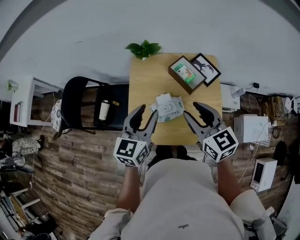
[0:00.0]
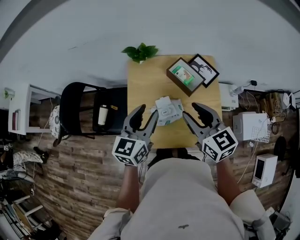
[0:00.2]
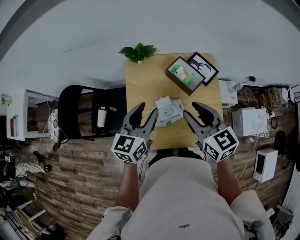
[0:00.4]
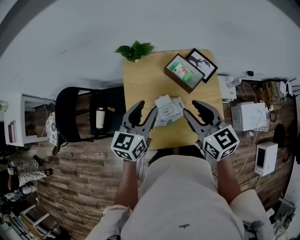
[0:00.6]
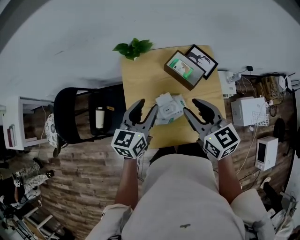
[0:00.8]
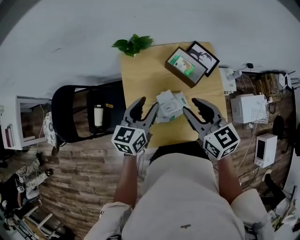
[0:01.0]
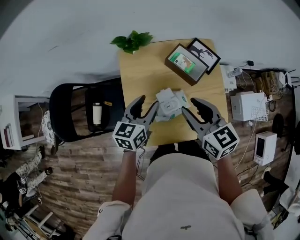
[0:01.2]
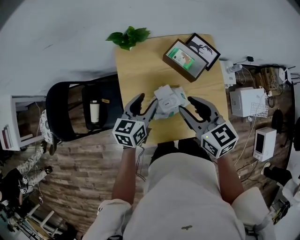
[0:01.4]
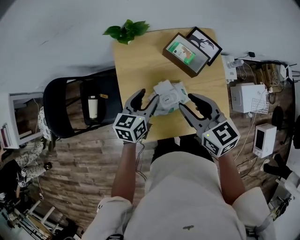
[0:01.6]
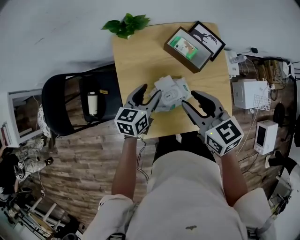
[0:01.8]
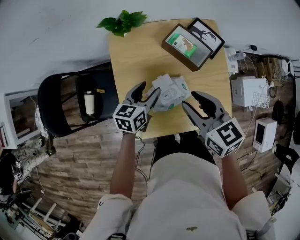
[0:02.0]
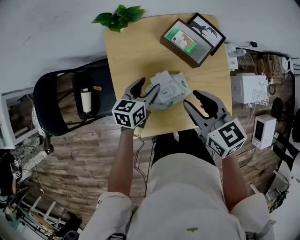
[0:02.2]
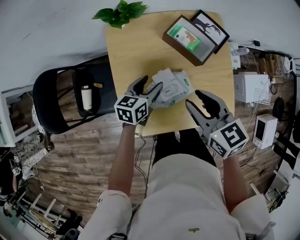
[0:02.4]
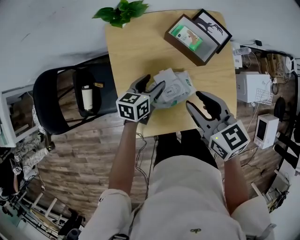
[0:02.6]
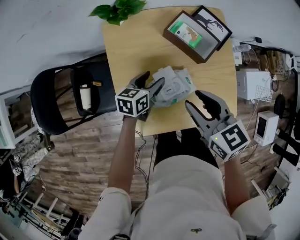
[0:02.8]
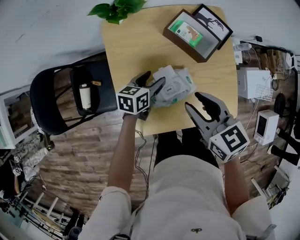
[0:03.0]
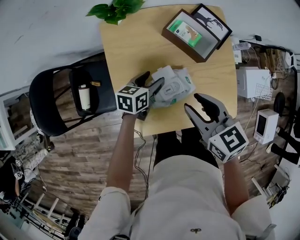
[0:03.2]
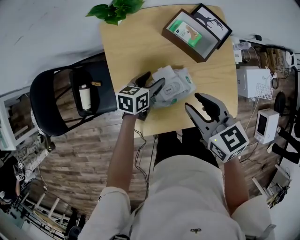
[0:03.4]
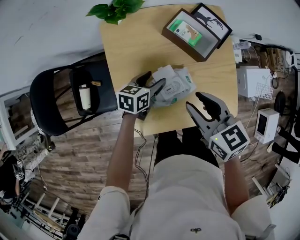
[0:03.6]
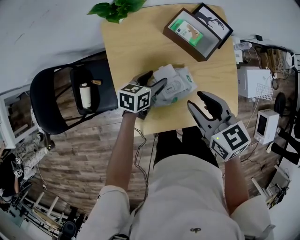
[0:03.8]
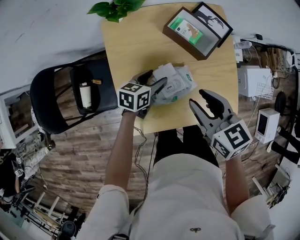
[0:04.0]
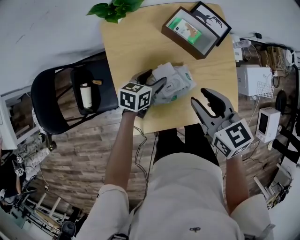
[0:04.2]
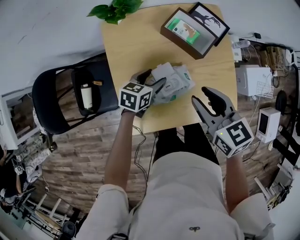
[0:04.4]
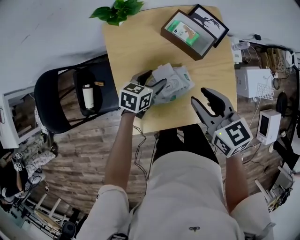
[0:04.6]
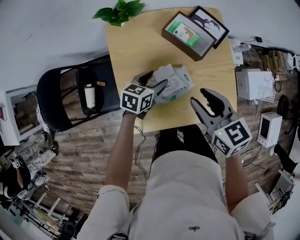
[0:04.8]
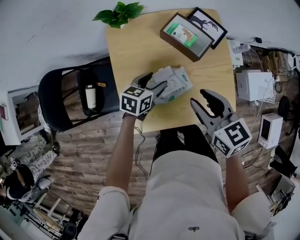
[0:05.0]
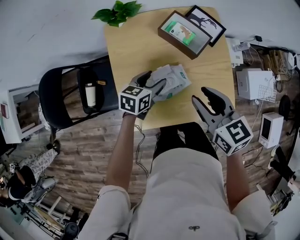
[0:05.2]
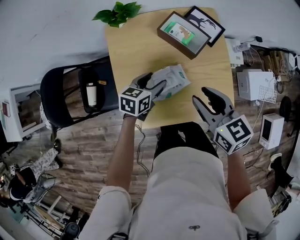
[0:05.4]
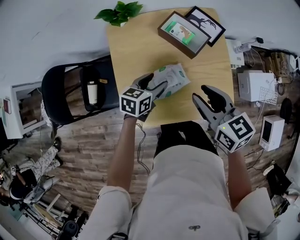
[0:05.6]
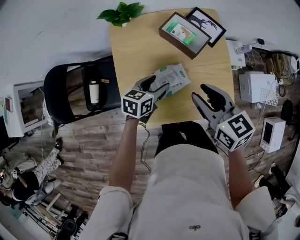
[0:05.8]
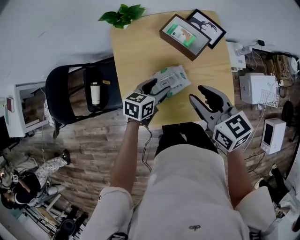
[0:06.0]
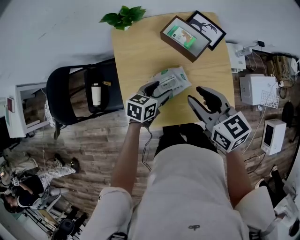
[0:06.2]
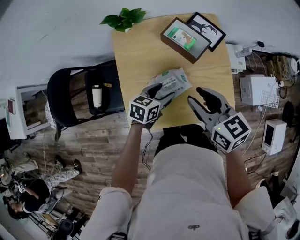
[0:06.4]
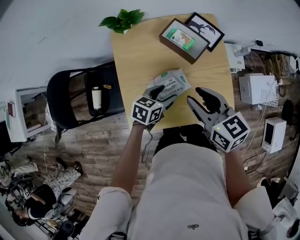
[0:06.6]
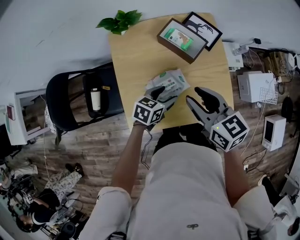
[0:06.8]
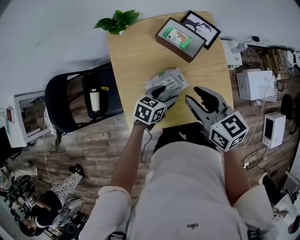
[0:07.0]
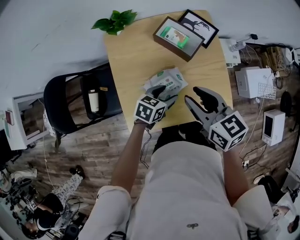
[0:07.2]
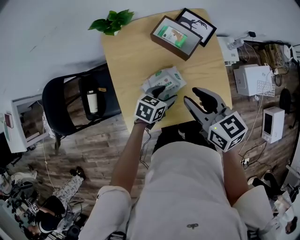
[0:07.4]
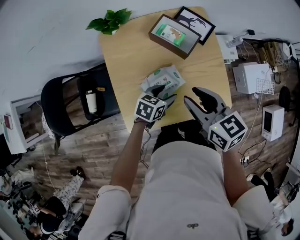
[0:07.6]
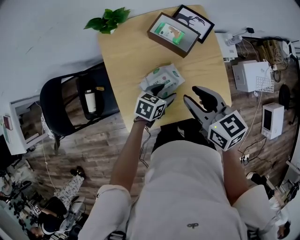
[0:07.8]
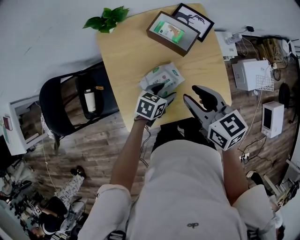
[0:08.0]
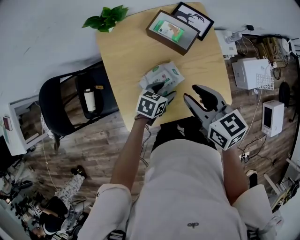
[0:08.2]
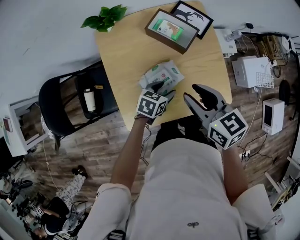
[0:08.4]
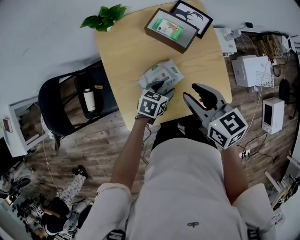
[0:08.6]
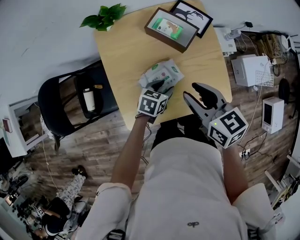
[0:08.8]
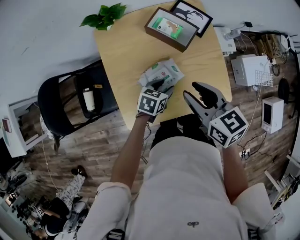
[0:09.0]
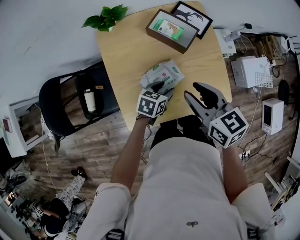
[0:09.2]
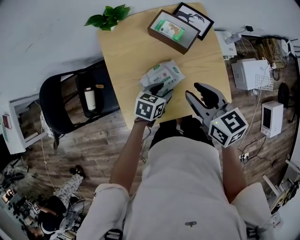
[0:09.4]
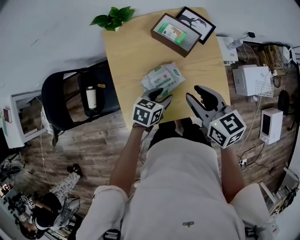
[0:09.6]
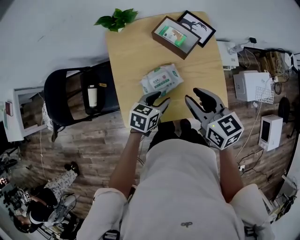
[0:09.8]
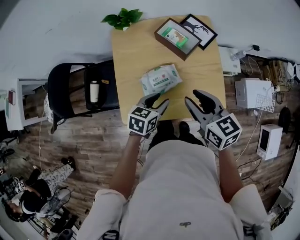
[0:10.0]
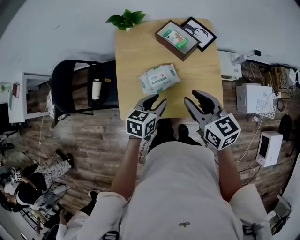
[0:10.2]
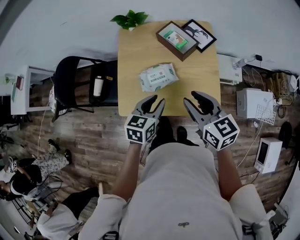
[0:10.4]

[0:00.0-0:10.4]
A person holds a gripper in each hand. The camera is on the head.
0:00.0 to 0:01.4: The right gripper is displaced downward and to the left by approximately 10 cm; the left gripper shifts about 15 cm downward and forward, and swivels some 20 degrees.
0:01.4 to 0:03.0: The right gripper is displaced downward by roughly 10 cm, while the left gripper is displaced downward by roughly 15 cm, and turns by roughly 20 degrees.
0:03.0 to 0:04.4: There are only small adjustments of the grippers.
0:04.4 to 0:06.0: The left gripper moves upward and backward, approximately 10 cm, while the right gripper changes place by about 5 cm.
0:06.0 to 0:07.4: The left gripper shifts some 5 cm to the right.
0:07.4 to 0:09.0: The grippers stay close to where they were, moving slightly.
0:09.0 to 0:10.4: The right gripper moves to the right and backward, some 10 cm. Meanwhile the left gripper goes roughly 20 cm upward and backward, and swivels about 30 degrees.

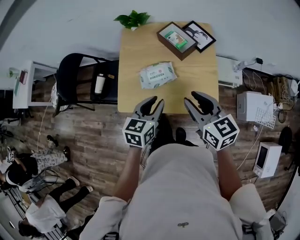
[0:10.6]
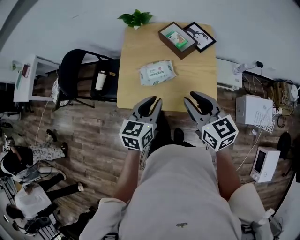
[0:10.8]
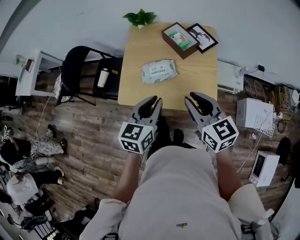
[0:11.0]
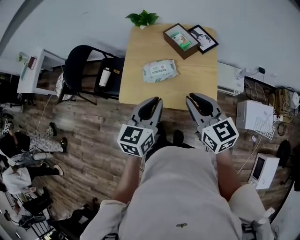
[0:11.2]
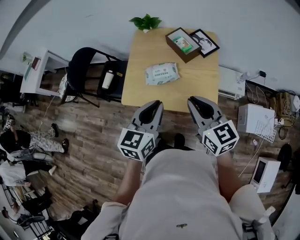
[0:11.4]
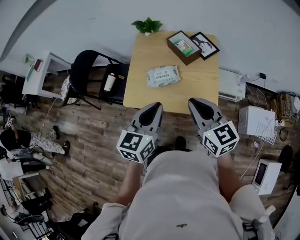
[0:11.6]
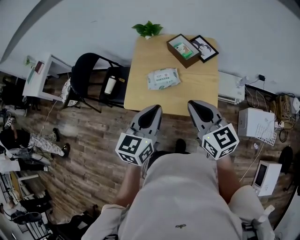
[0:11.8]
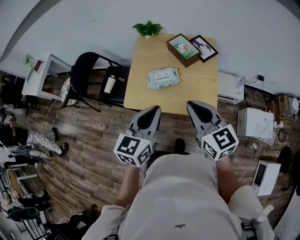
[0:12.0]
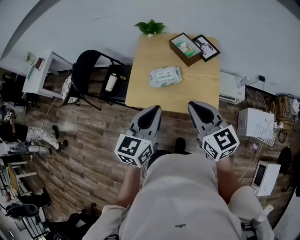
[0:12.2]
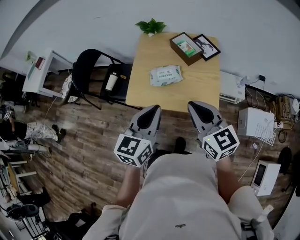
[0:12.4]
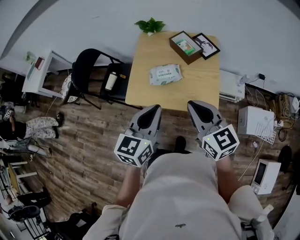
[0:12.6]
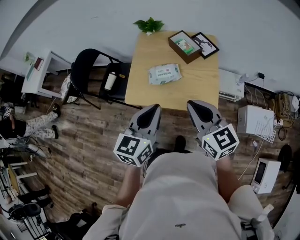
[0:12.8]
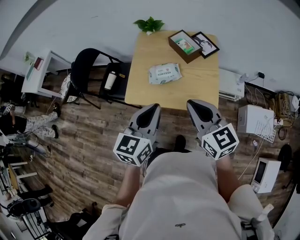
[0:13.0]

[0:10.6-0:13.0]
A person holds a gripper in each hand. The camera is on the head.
0:10.6 to 0:11.8: The right gripper travels backward and upward by roughly 10 cm, and closes its fingers, while the left gripper travels upward and backward by some 15 cm.
0:11.8 to 0:13.0: There are only small adjustments of the grippers.

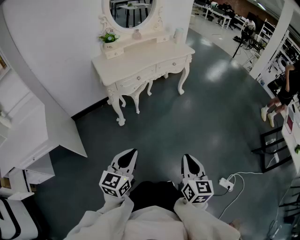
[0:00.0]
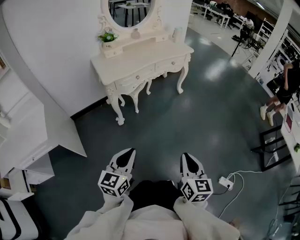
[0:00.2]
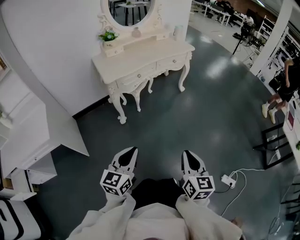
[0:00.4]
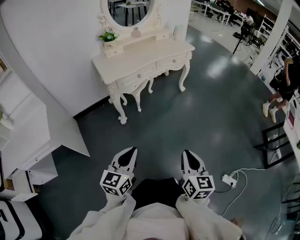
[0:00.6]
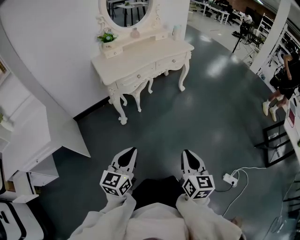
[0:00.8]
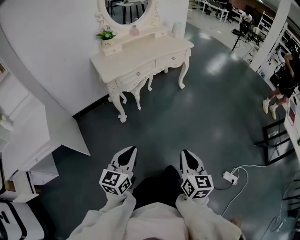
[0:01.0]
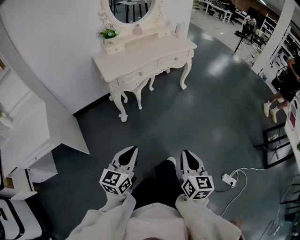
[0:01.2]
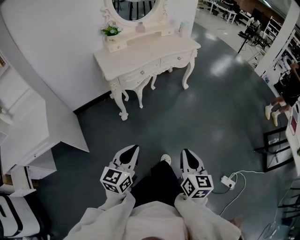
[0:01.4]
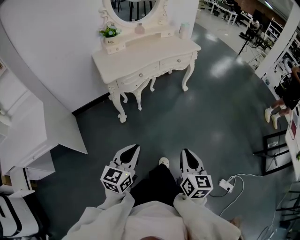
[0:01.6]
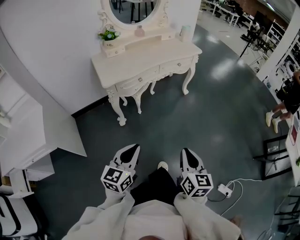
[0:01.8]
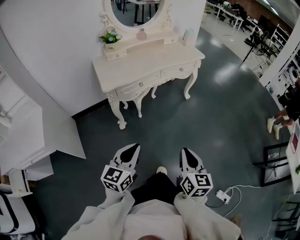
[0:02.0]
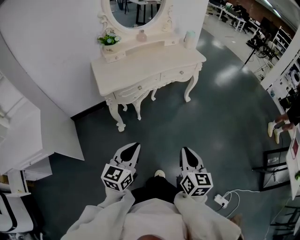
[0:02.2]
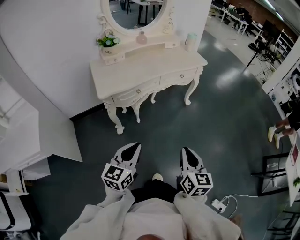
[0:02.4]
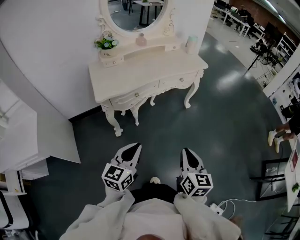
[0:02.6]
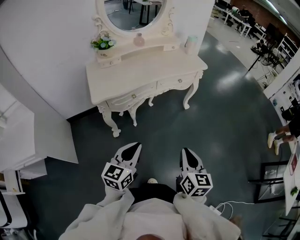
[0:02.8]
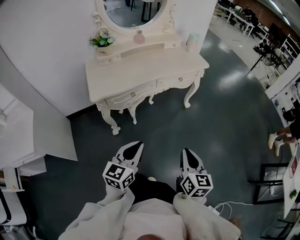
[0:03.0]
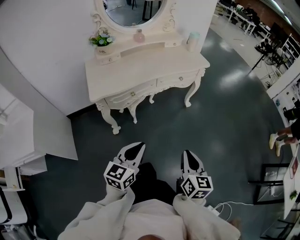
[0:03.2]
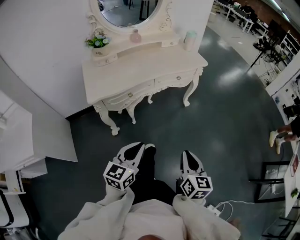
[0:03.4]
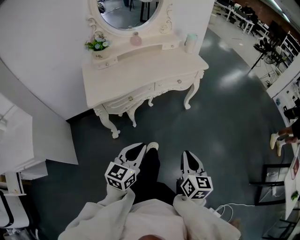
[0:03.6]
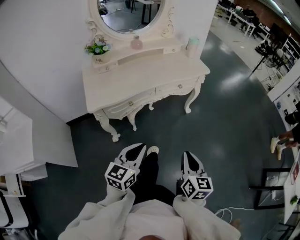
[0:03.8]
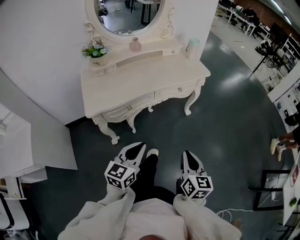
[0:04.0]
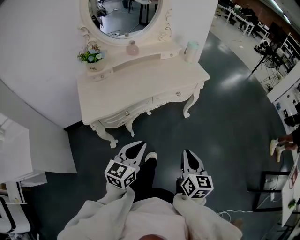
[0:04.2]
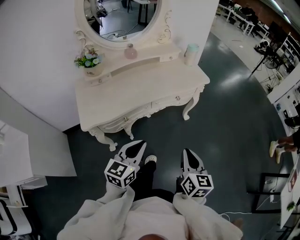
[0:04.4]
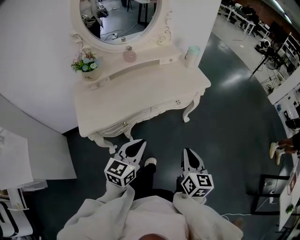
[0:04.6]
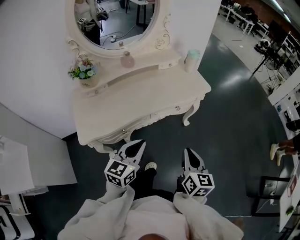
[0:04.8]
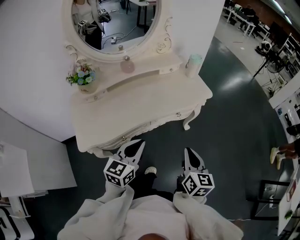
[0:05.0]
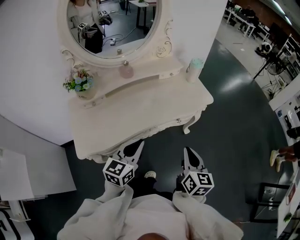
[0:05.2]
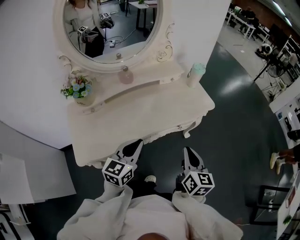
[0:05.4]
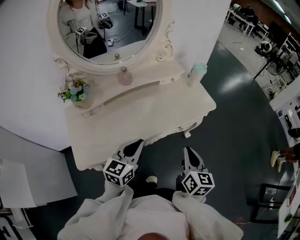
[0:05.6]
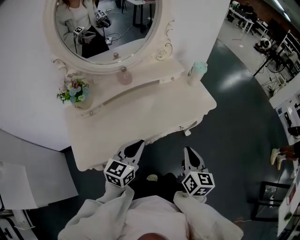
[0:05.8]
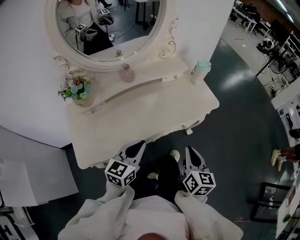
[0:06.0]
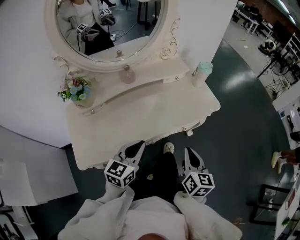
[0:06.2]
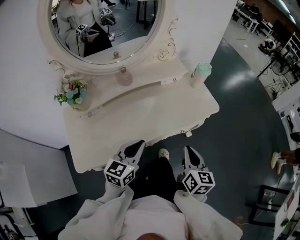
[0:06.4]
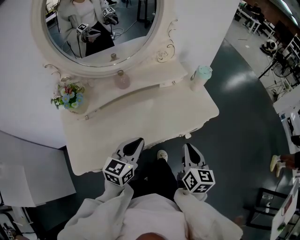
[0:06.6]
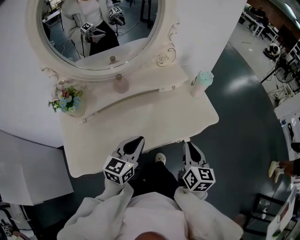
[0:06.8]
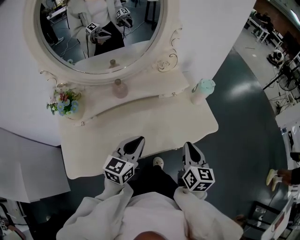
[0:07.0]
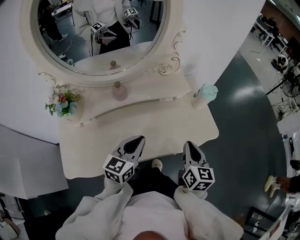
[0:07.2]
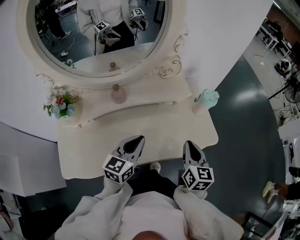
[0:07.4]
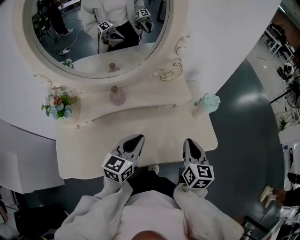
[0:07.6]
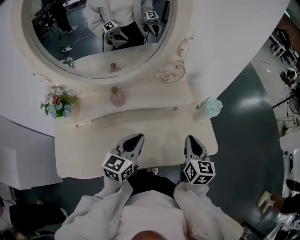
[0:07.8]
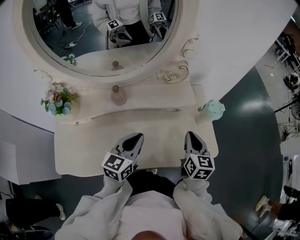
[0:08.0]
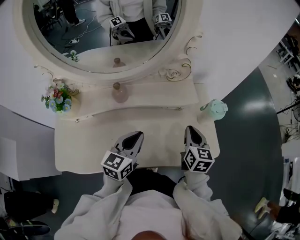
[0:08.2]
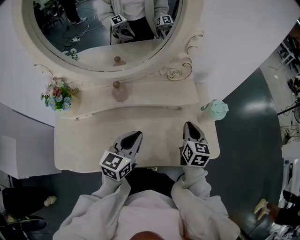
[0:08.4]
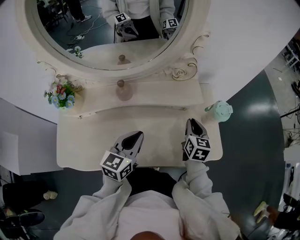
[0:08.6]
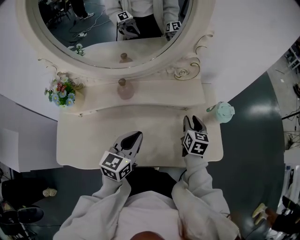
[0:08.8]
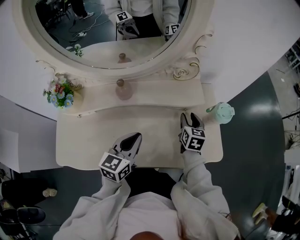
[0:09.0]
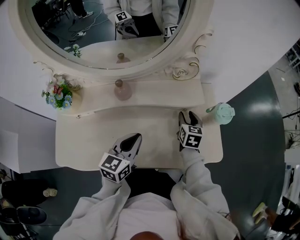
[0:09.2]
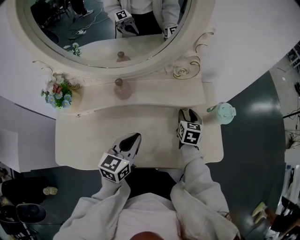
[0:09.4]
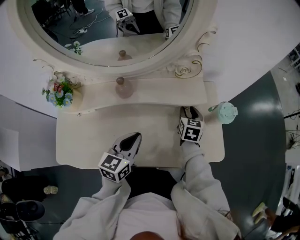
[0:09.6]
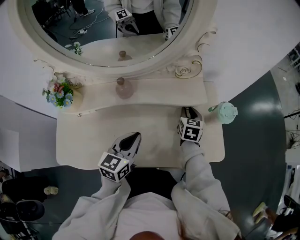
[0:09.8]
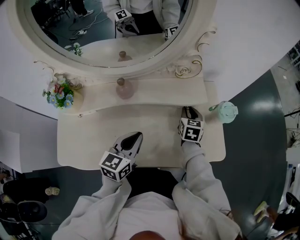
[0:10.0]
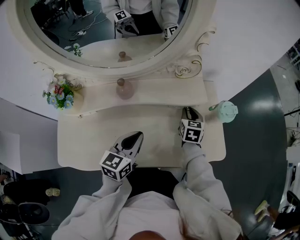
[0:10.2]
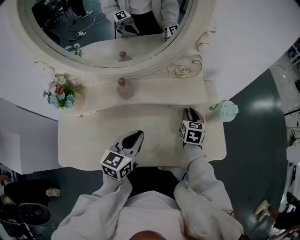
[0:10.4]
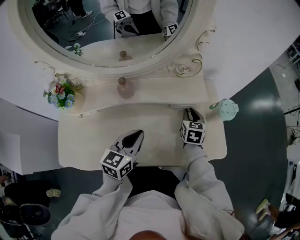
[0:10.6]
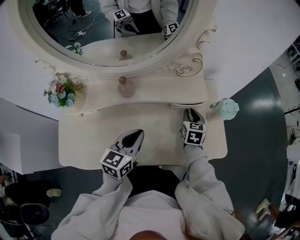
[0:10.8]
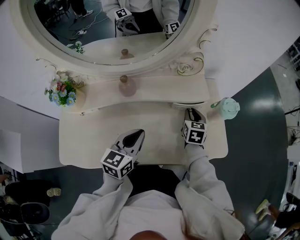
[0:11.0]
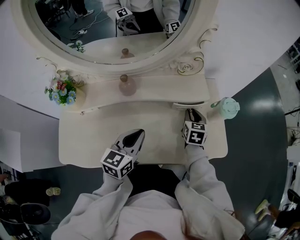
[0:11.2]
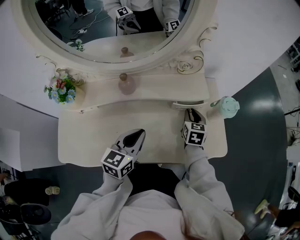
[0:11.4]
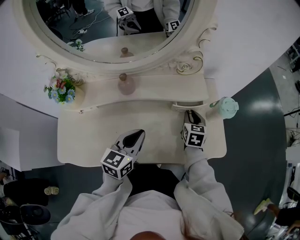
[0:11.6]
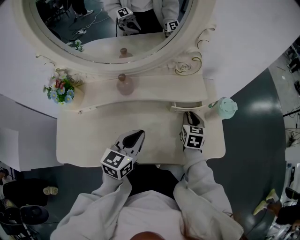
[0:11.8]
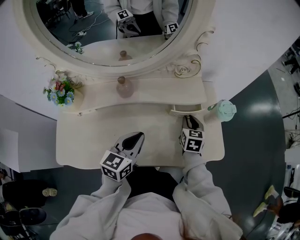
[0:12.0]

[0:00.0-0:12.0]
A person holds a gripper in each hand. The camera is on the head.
0:00.0 to 0:01.6: Both grippers move forward, about 5 cm.
0:01.6 to 0:03.0: The grippers both shift forward by approximately 25 cm.
0:03.0 to 0:04.4: Both grippers move forward, approximately 20 cm.
0:04.4 to 0:06.0: Both grippers travel together forward, some 20 cm.
0:06.0 to 0:07.6: Both grippers move forward, about 25 cm.
0:07.6 to 0:09.0: The right gripper moves forward and downward, approximately 20 cm, and opens up.
0:09.0 to 0:12.0: The grippers move only a little.
